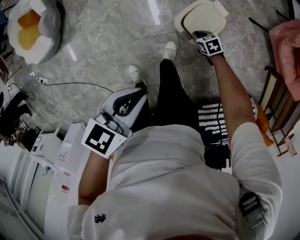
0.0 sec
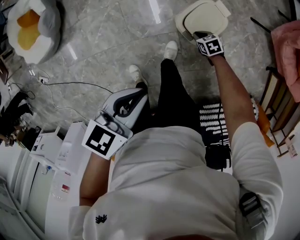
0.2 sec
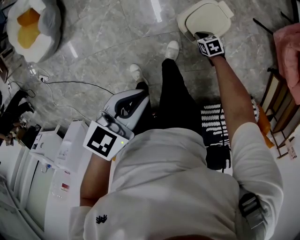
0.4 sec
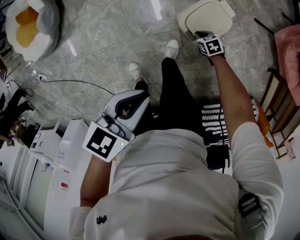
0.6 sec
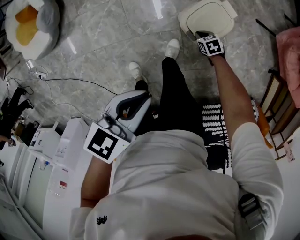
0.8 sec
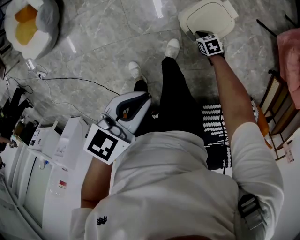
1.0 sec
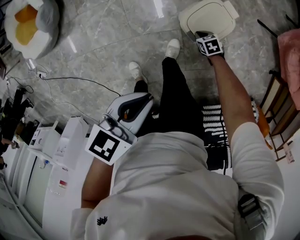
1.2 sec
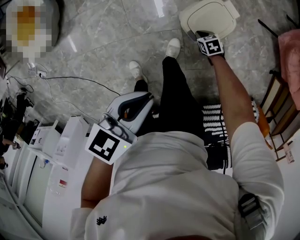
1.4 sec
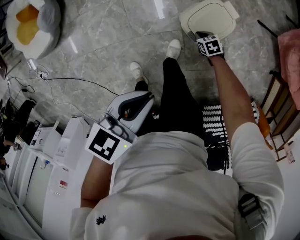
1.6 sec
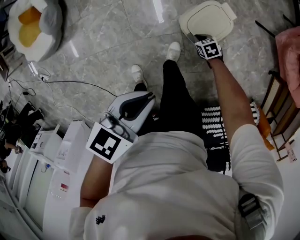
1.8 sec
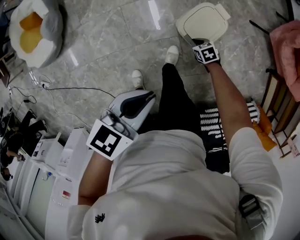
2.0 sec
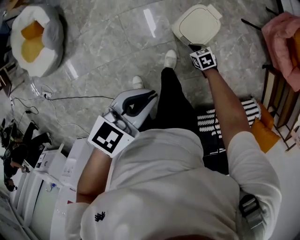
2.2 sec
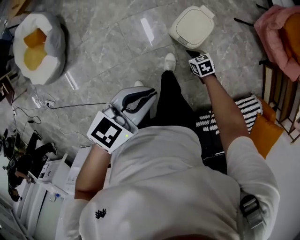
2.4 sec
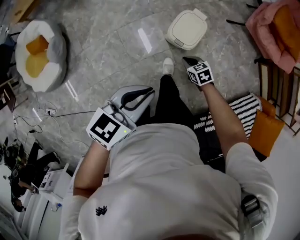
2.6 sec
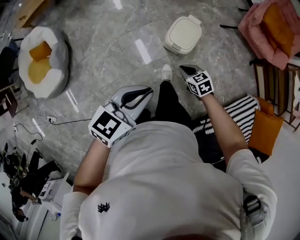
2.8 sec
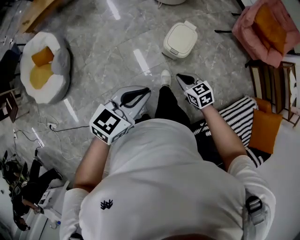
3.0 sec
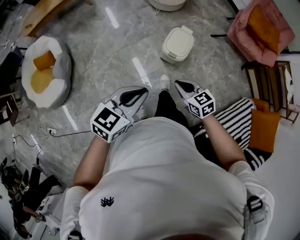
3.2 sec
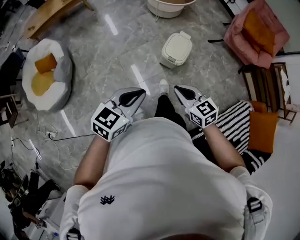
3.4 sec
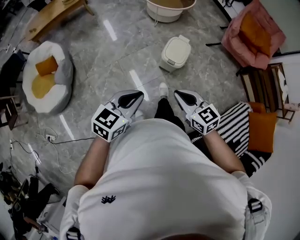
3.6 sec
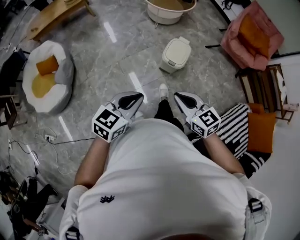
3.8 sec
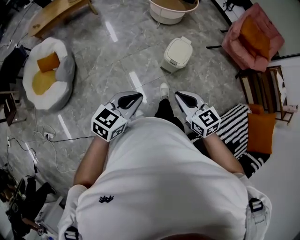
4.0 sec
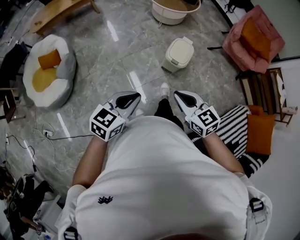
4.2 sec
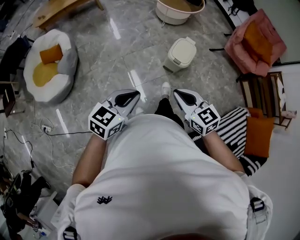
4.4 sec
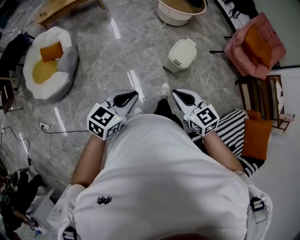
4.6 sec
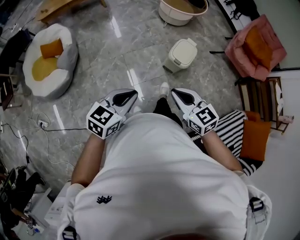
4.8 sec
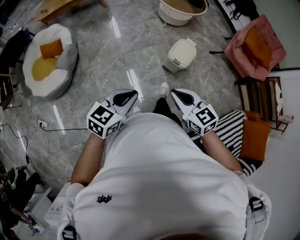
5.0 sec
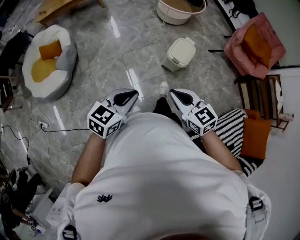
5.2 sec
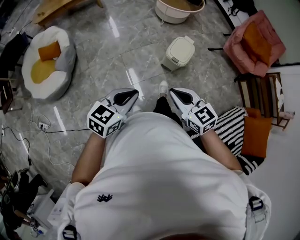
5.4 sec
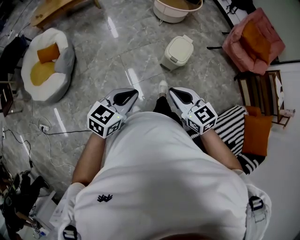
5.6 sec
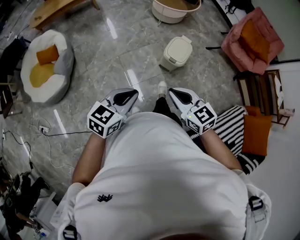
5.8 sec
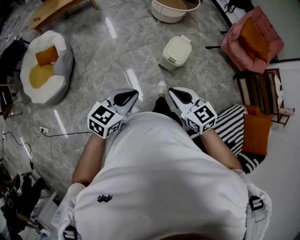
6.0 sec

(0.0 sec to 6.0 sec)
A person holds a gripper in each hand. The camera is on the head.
0.0 sec - 1.6 sec: The right gripper goes about 5 cm downward.
1.6 sec - 3.0 sec: The right gripper heads upward, covering some 35 cm, and turns by some 30 degrees; the left gripper moves upward, roughly 15 cm, and changes its angle by about 30 degrees.
3.0 sec - 4.4 sec: The right gripper shifts some 25 cm upward, backward and to the left. Meanwhile the left gripper is displaced backward and to the left by approximately 15 cm.
4.4 sec - 6.0 sec: There are only small adjustments of the grippers.

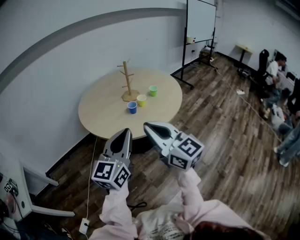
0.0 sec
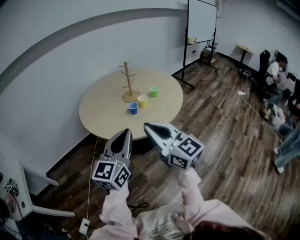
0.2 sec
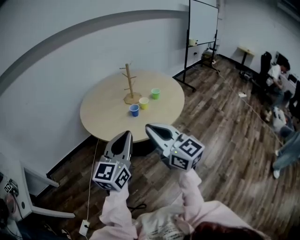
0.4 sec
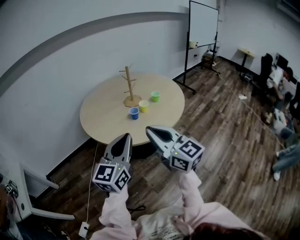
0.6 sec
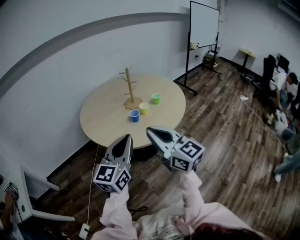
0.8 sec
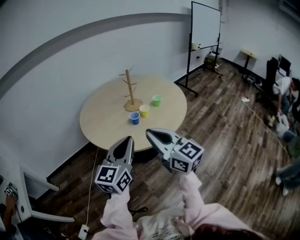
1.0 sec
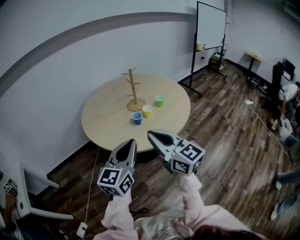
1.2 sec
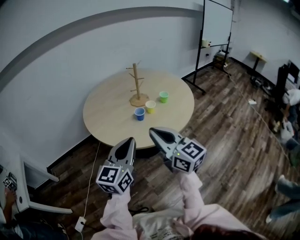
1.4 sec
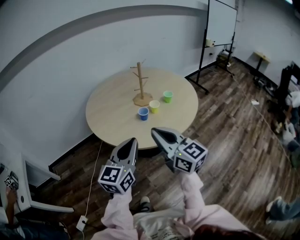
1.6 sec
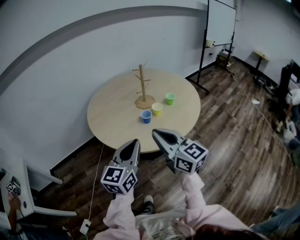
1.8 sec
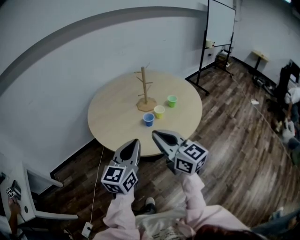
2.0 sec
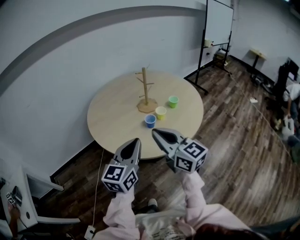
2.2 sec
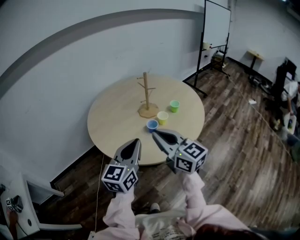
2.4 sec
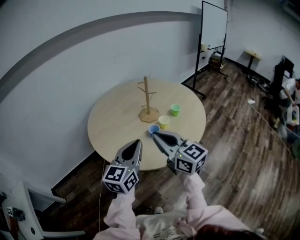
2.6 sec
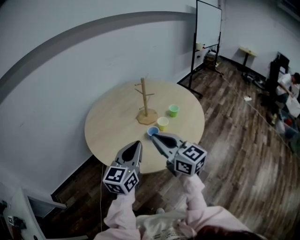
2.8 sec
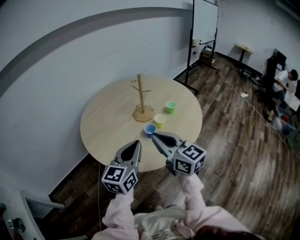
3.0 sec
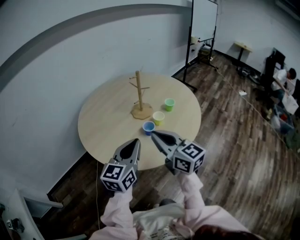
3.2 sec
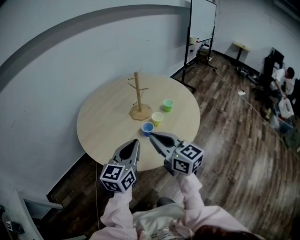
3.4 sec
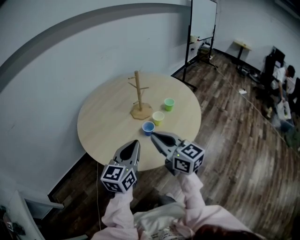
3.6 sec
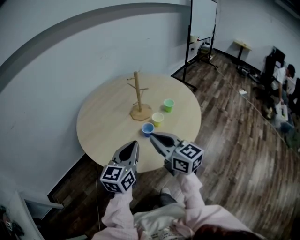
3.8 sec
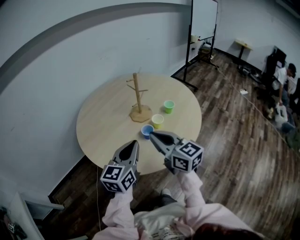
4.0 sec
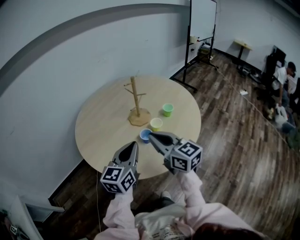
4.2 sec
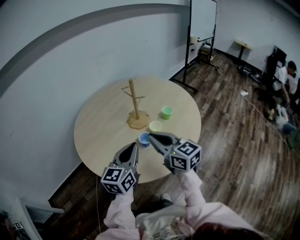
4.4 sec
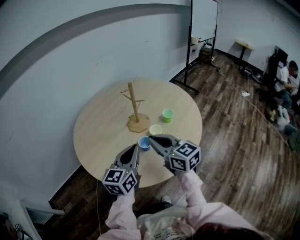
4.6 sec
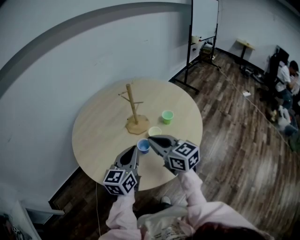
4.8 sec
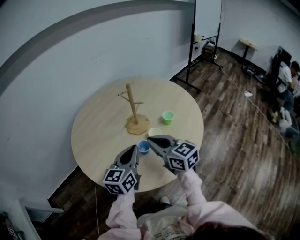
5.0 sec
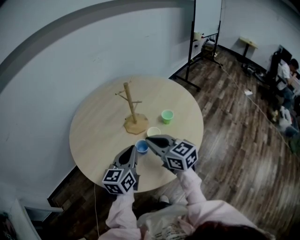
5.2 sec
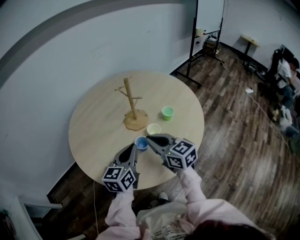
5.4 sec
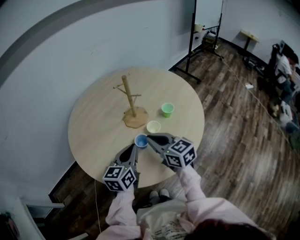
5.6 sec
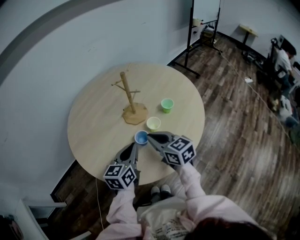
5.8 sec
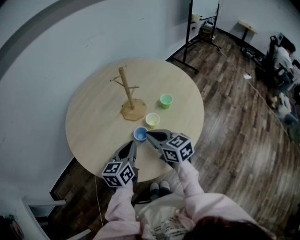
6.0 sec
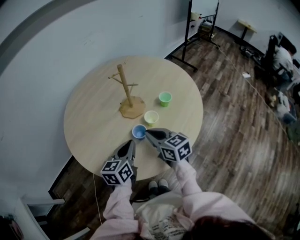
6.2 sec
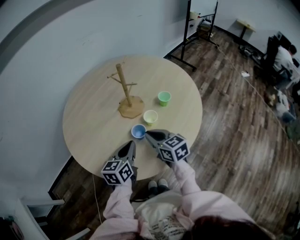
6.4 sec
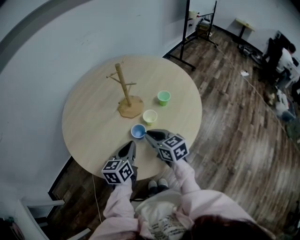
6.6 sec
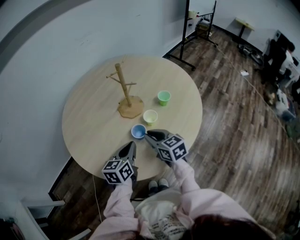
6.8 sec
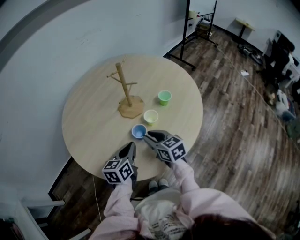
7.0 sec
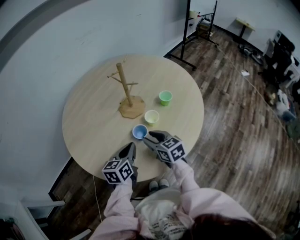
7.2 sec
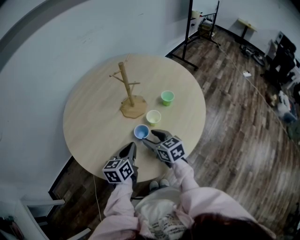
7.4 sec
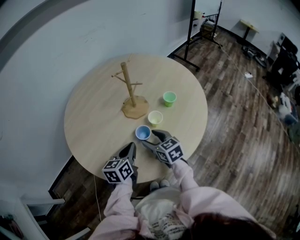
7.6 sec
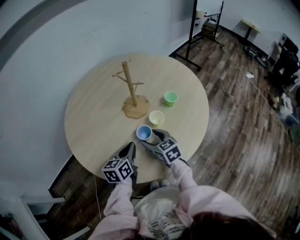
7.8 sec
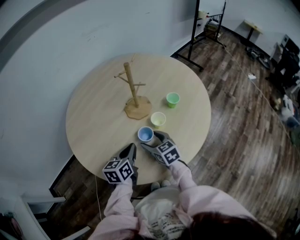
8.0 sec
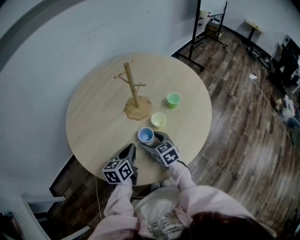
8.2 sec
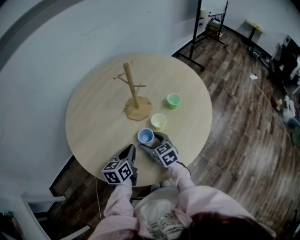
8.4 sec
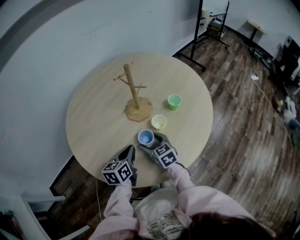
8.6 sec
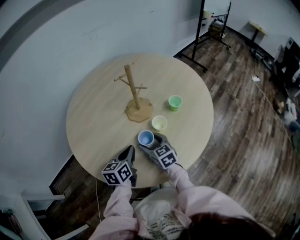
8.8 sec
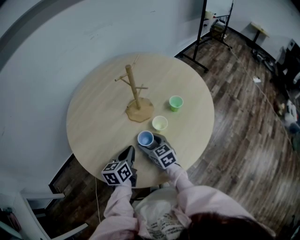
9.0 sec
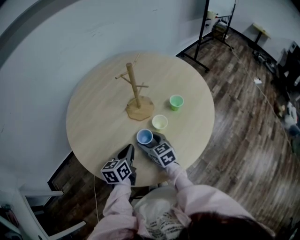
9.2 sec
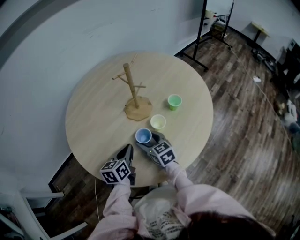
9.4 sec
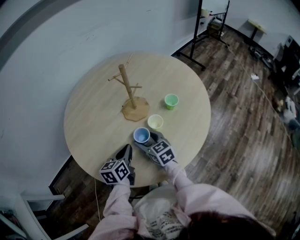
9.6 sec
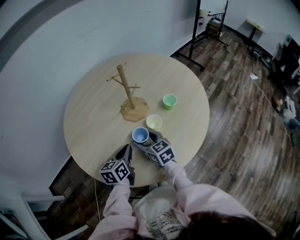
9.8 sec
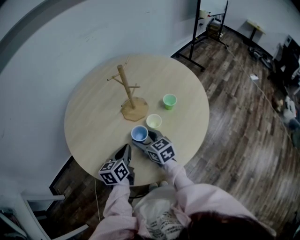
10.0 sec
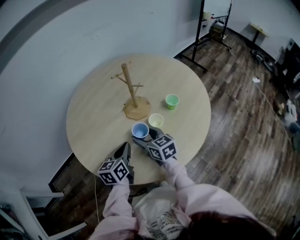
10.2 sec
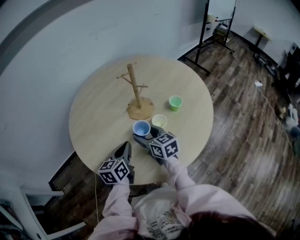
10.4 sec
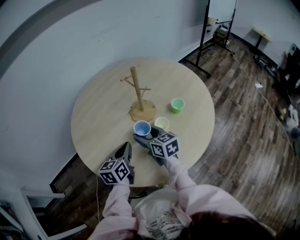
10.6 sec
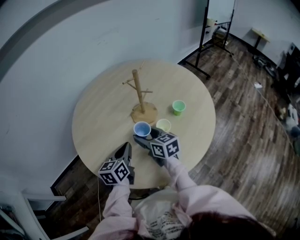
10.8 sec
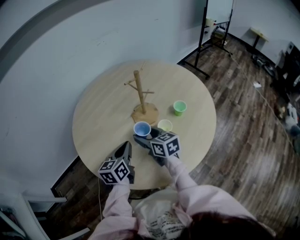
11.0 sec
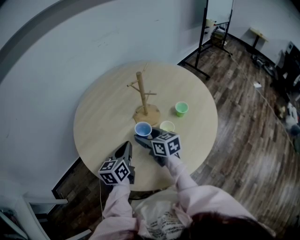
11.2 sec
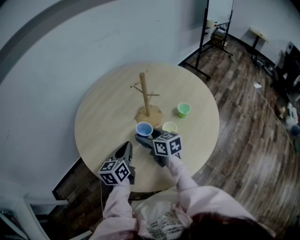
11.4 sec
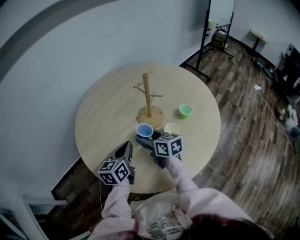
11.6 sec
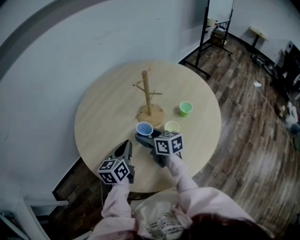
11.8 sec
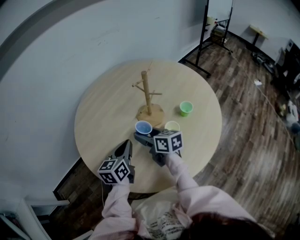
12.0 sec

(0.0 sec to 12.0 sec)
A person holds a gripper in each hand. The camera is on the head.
0.0 sec - 1.6 sec: The right gripper is displaced forward by approximately 10 cm. The left gripper is displaced forward and downward by approximately 10 cm.
1.6 sec - 3.0 sec: The right gripper is displaced forward and to the left by roughly 15 cm; the left gripper shifts about 15 cm forward.
3.0 sec - 4.4 sec: Both grippers move forward, about 10 cm.
4.4 sec - 6.0 sec: The grippers both shift downward and forward by roughly 15 cm.
6.0 sec - 7.6 sec: The grippers both shift downward by some 10 cm. The right gripper opens.
7.6 sec - 9.0 sec: The right gripper shifts by about 5 cm.
9.0 sec - 10.4 sec: The right gripper shifts about 10 cm upward.
10.4 sec - 12.0 sec: Both grippers travel together forward, about 5 cm.

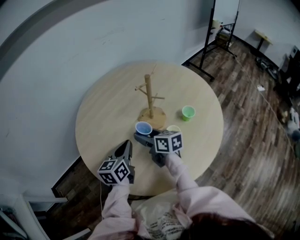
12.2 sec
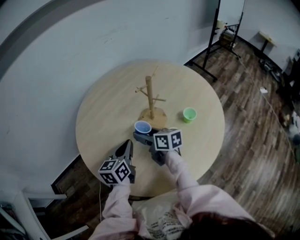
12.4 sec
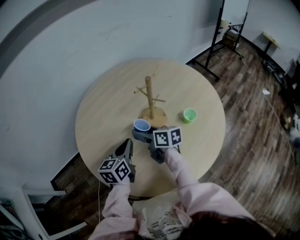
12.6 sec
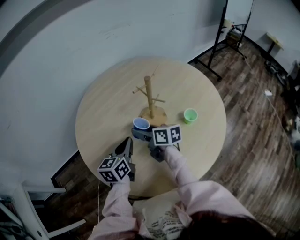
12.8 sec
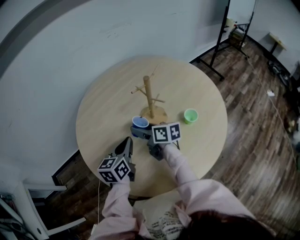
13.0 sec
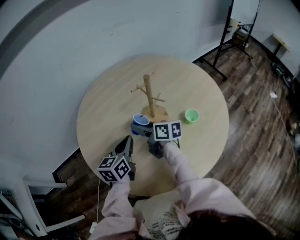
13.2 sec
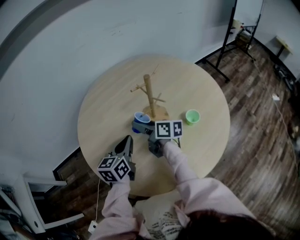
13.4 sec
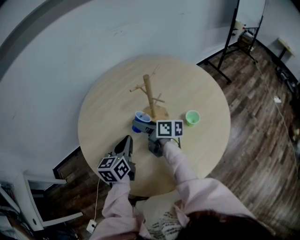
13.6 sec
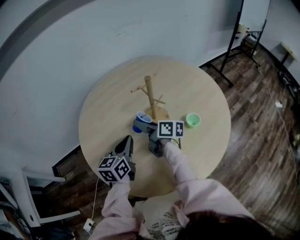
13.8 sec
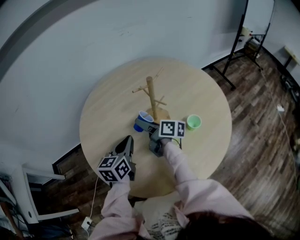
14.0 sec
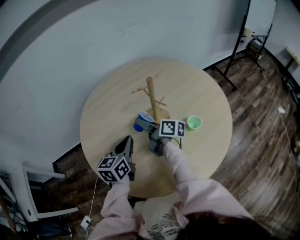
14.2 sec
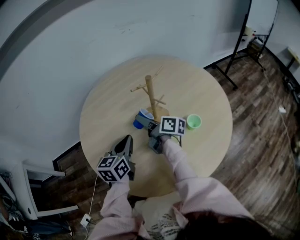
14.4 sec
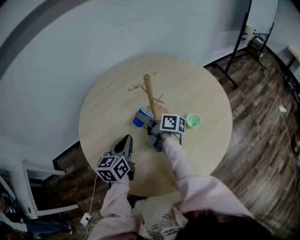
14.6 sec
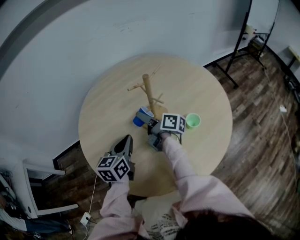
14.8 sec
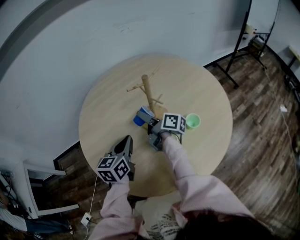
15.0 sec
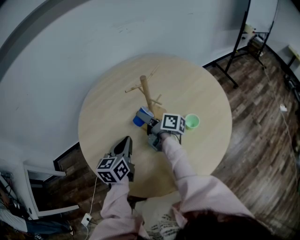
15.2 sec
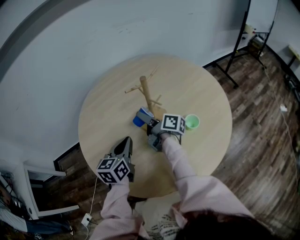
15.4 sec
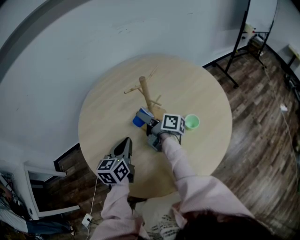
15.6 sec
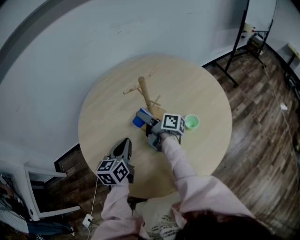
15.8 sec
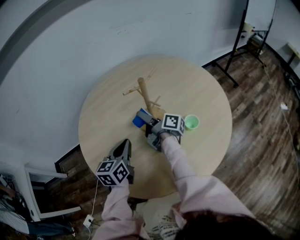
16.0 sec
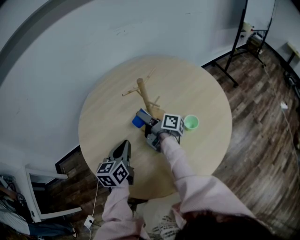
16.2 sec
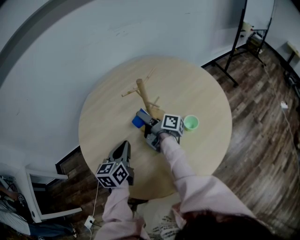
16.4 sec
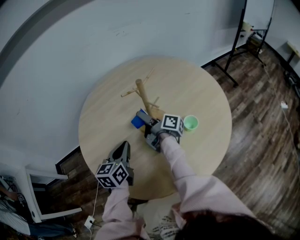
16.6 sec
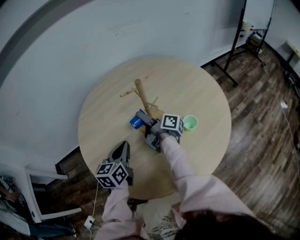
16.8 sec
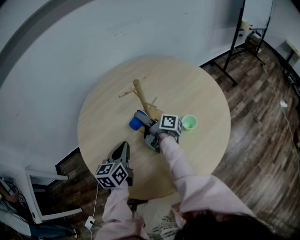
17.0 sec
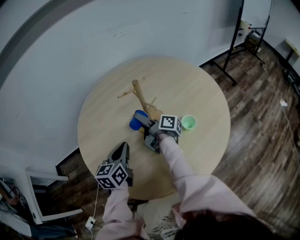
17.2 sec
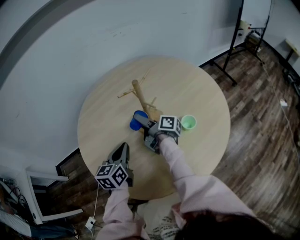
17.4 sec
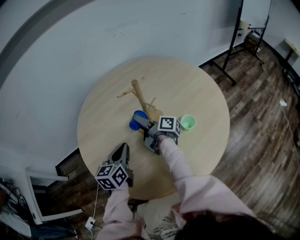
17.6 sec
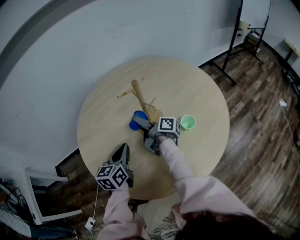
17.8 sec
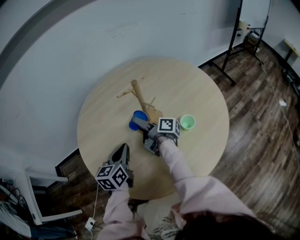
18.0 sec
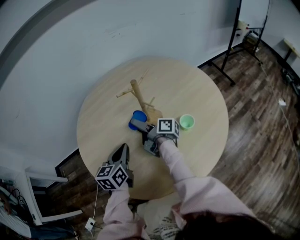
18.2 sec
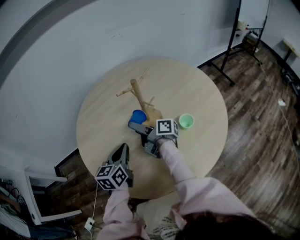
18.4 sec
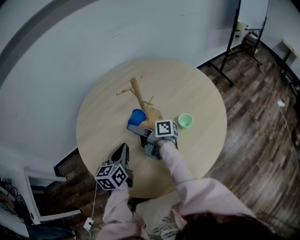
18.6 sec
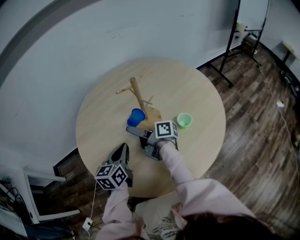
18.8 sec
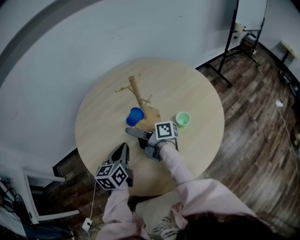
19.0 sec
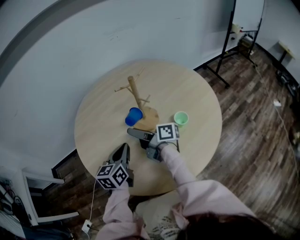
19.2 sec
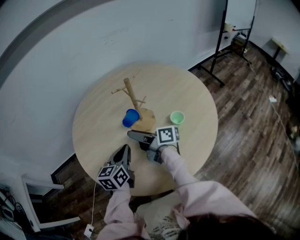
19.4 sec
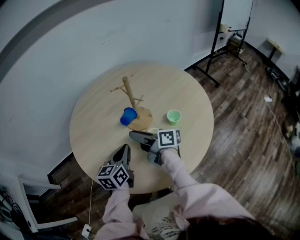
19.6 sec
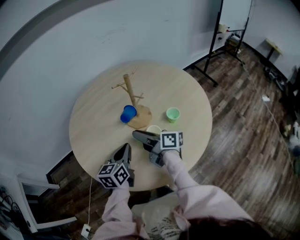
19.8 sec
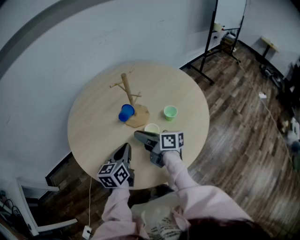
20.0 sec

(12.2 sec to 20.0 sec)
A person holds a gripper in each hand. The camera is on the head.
12.2 sec - 13.8 sec: The right gripper ends up roughly 5 cm from where it was, and changes its angle by some 20 degrees.
13.8 sec - 15.4 sec: There are only small adjustments of the grippers.
15.4 sec - 16.8 sec: The grippers move only a little.
16.8 sec - 18.4 sec: The right gripper ends up about 5 cm from where it was.
18.4 sec - 20.0 sec: The right gripper heads backward, covering approximately 10 cm, changes its angle by approximately 30 degrees, and closes up. Meanwhile the left gripper goes about 5 cm backward.
